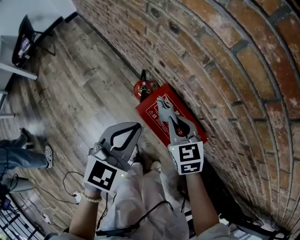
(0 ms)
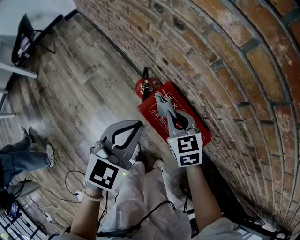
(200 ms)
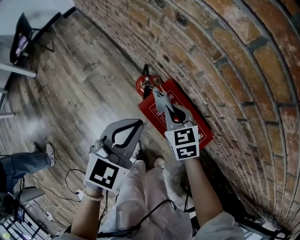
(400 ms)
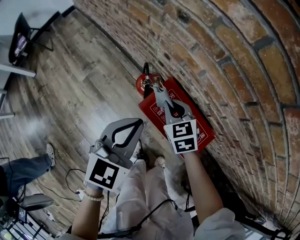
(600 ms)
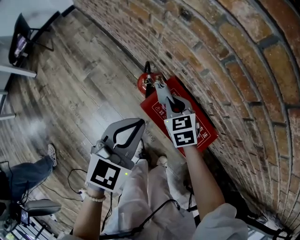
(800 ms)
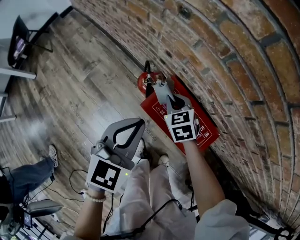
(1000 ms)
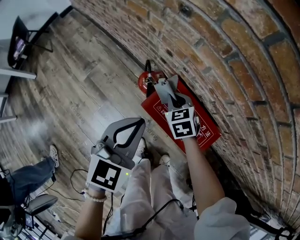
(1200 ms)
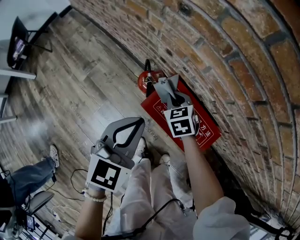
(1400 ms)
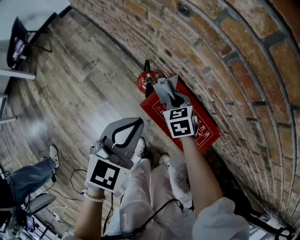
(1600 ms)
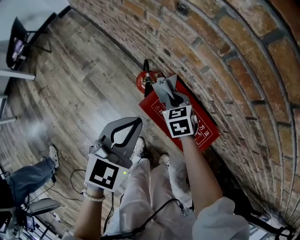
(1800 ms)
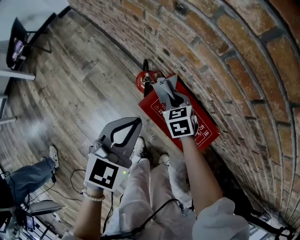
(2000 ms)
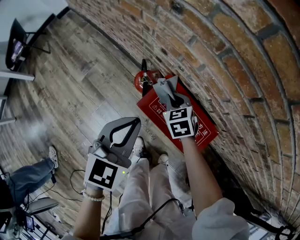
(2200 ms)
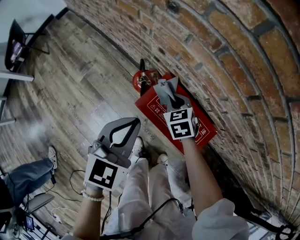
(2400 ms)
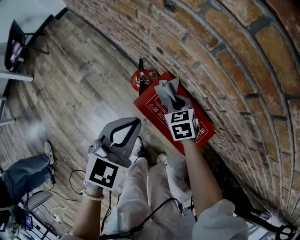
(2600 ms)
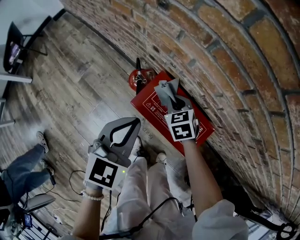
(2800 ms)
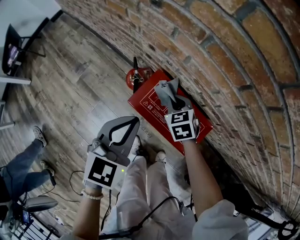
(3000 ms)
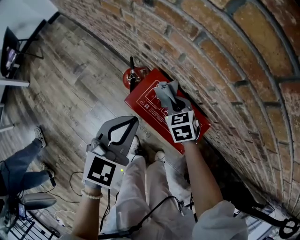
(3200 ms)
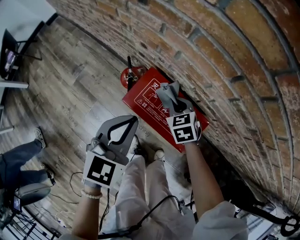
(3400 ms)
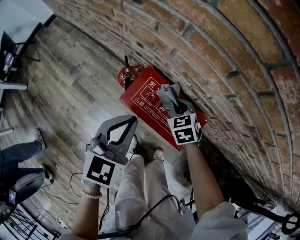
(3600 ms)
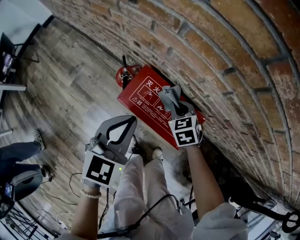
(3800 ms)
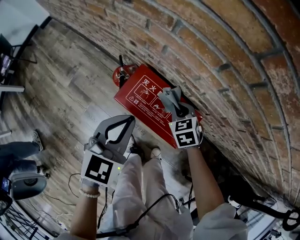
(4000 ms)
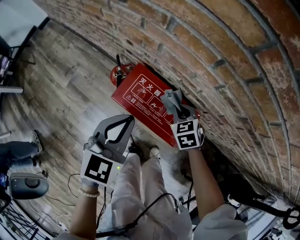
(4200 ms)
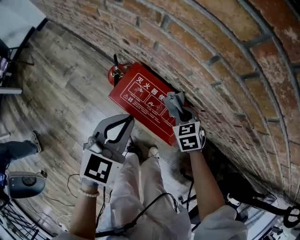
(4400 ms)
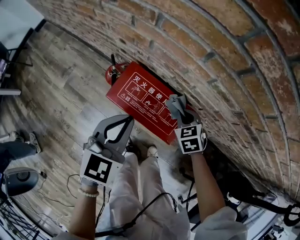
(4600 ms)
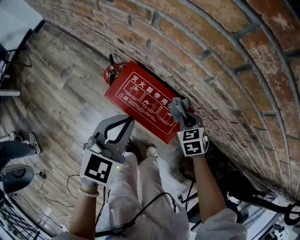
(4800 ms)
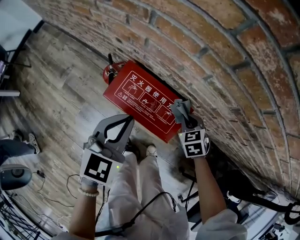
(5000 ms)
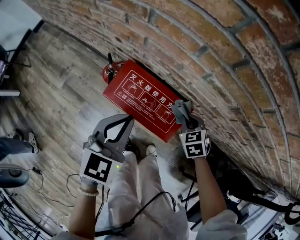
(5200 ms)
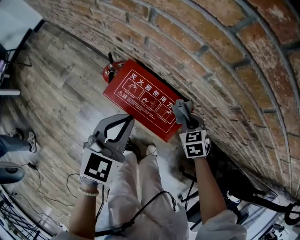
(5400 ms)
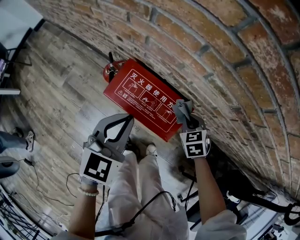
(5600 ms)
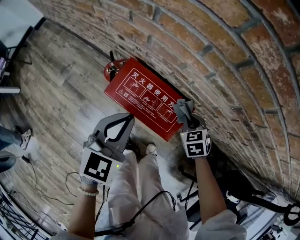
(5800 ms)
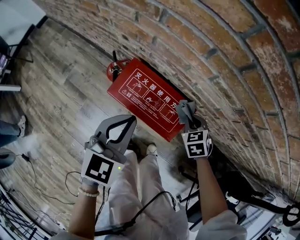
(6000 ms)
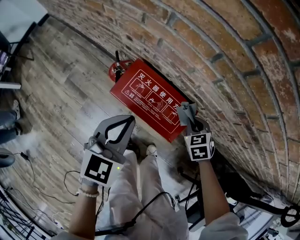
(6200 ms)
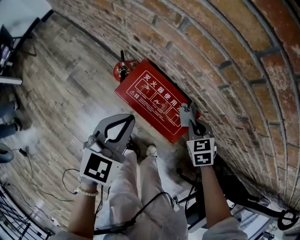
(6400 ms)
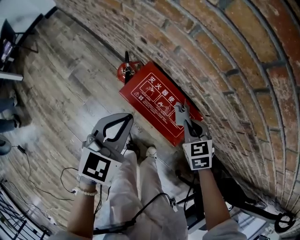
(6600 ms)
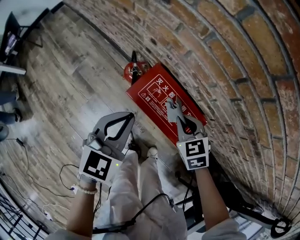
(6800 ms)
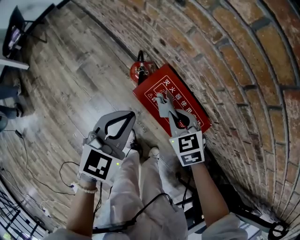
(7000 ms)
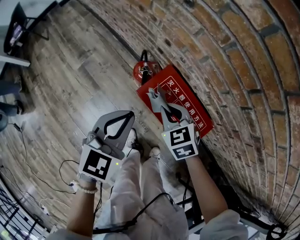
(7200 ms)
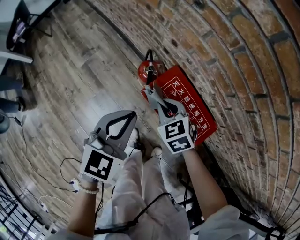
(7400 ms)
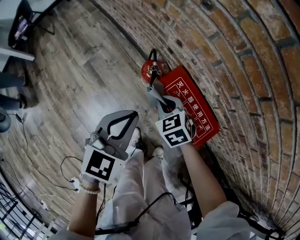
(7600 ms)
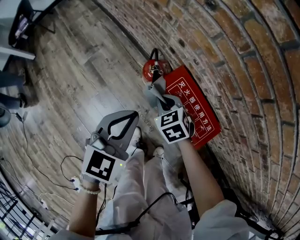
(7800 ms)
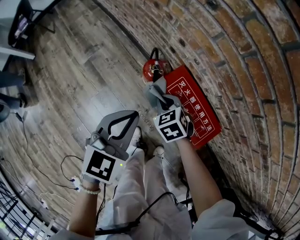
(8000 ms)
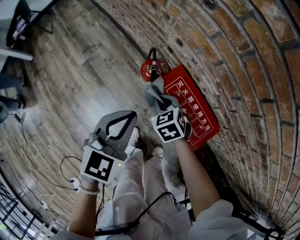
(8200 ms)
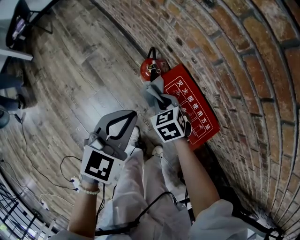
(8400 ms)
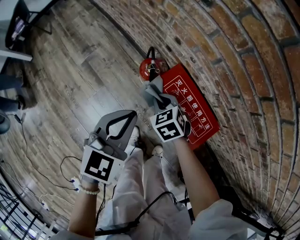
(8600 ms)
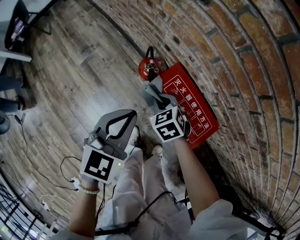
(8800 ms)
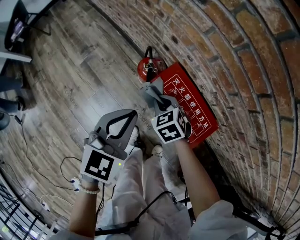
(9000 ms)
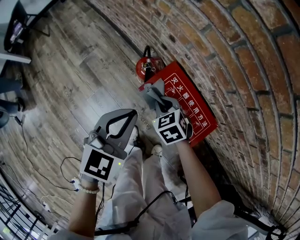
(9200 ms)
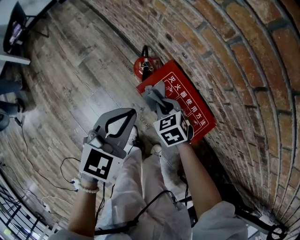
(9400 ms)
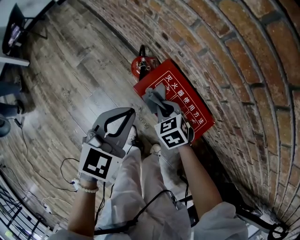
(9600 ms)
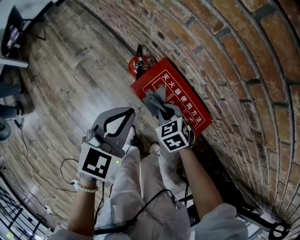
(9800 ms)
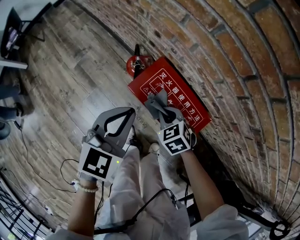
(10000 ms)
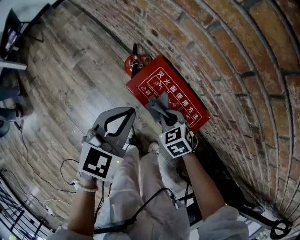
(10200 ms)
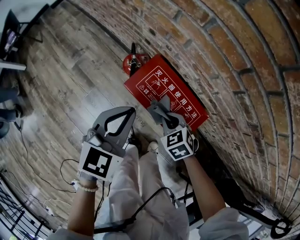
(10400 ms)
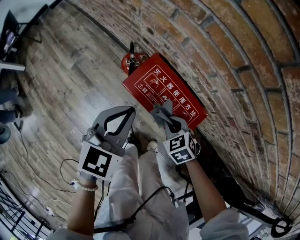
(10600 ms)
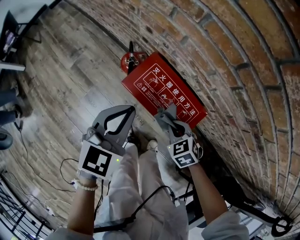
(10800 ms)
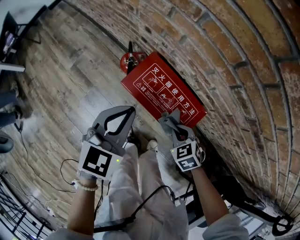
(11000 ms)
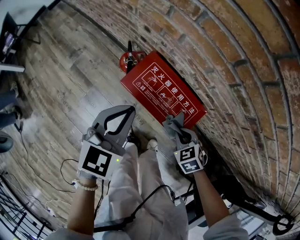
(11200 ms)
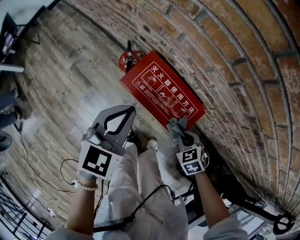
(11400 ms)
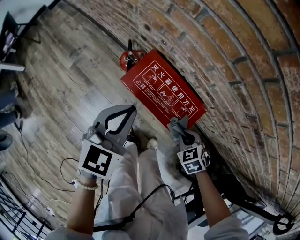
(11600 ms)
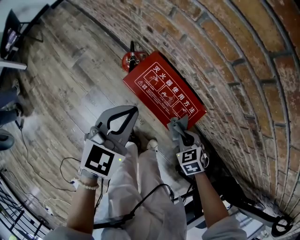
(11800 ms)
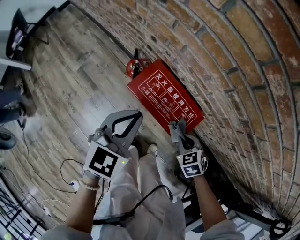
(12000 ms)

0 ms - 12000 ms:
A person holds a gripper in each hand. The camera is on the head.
0 ms - 1600 ms: The left gripper moves downward, approximately 5 cm; the right gripper travels downward and forward by some 15 cm.
1600 ms - 3000 ms: The right gripper moves to the right, roughly 5 cm.
3000 ms - 4400 ms: The right gripper shifts some 15 cm to the right and backward, while the left gripper goes approximately 5 cm to the right.
4400 ms - 6000 ms: The right gripper shifts roughly 5 cm to the right.
6000 ms - 7600 ms: The left gripper shifts by approximately 15 cm, while the right gripper shifts by approximately 30 cm, and turns by roughly 30 degrees.
7600 ms - 9000 ms: There are only small adjustments of the grippers.
9000 ms - 10400 ms: The right gripper heads to the right and backward, covering roughly 15 cm. Meanwhile the left gripper goes some 5 cm to the right.
10400 ms - 12000 ms: The right gripper heads to the right and backward, covering roughly 10 cm.

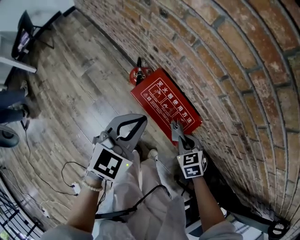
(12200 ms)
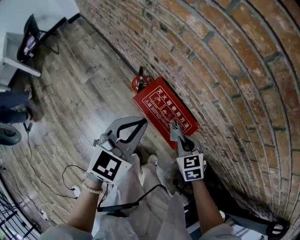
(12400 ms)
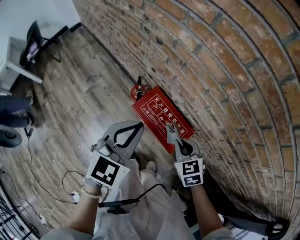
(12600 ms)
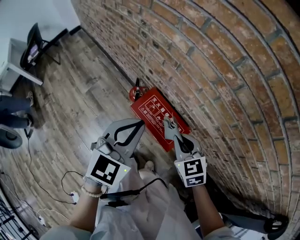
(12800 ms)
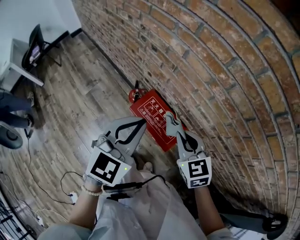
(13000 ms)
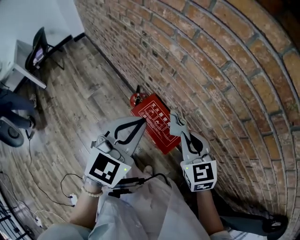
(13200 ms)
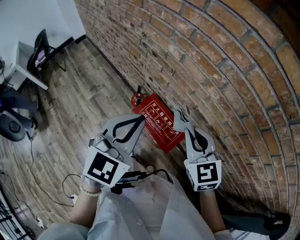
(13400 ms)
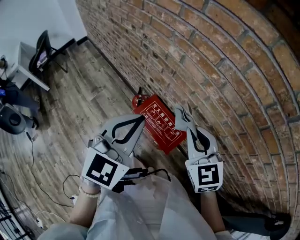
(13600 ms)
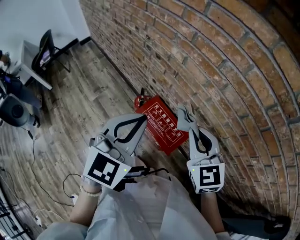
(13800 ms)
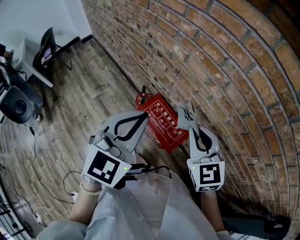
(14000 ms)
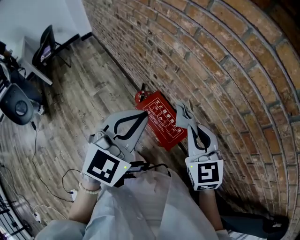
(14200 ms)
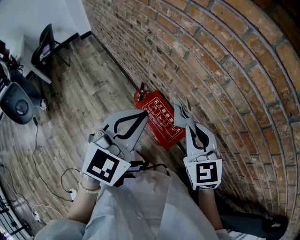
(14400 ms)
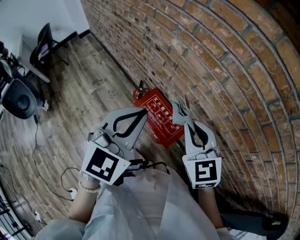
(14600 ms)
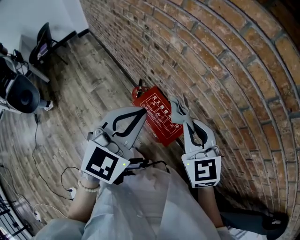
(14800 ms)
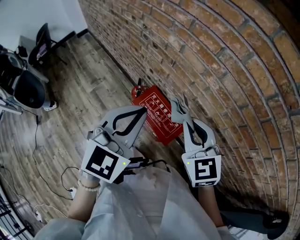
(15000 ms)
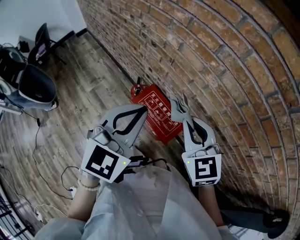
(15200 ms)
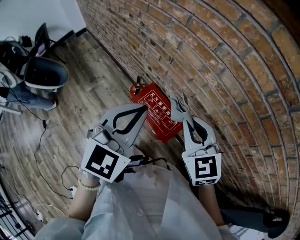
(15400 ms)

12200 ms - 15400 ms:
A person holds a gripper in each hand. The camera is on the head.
12200 ms - 13800 ms: The left gripper moves upward, roughly 25 cm. Meanwhile the right gripper heads upward, covering approximately 35 cm, and angles its fingers upward, by about 40 degrees.
13800 ms - 15400 ms: The grippers move only a little.

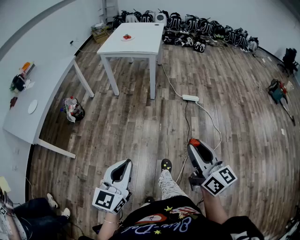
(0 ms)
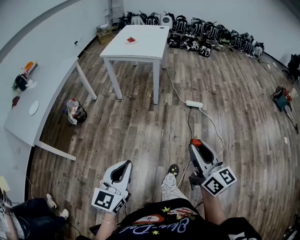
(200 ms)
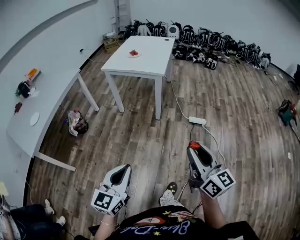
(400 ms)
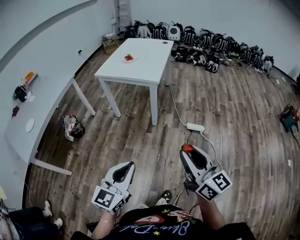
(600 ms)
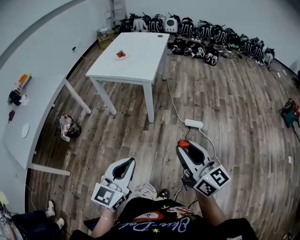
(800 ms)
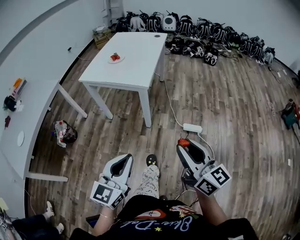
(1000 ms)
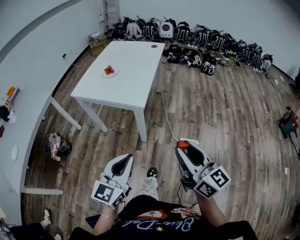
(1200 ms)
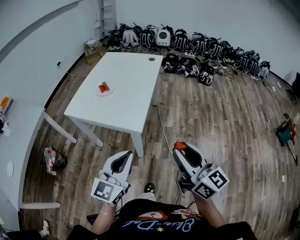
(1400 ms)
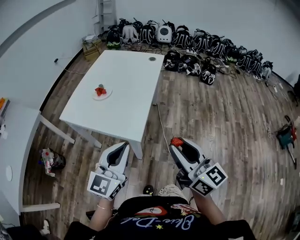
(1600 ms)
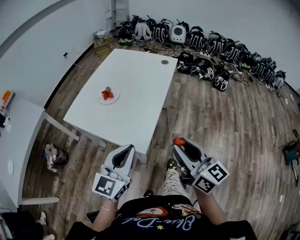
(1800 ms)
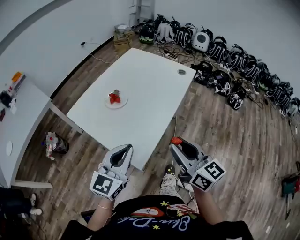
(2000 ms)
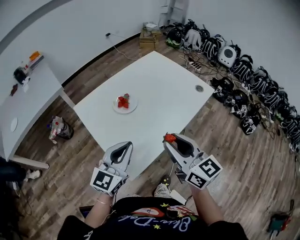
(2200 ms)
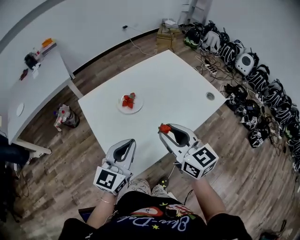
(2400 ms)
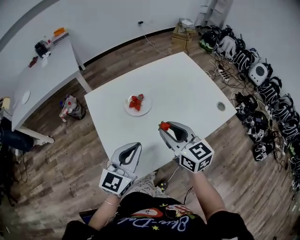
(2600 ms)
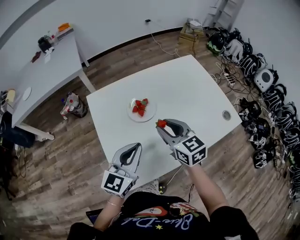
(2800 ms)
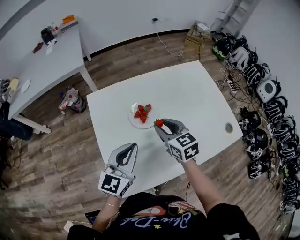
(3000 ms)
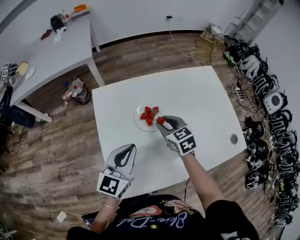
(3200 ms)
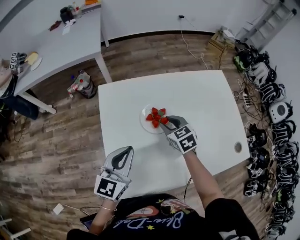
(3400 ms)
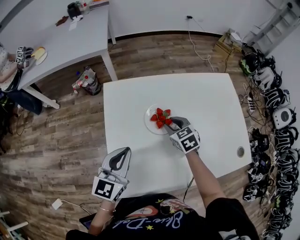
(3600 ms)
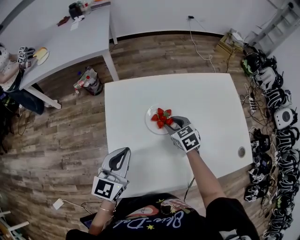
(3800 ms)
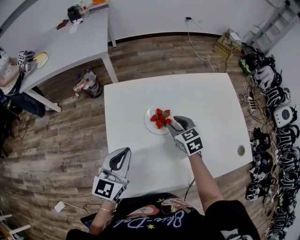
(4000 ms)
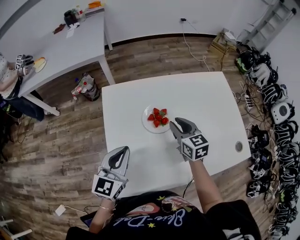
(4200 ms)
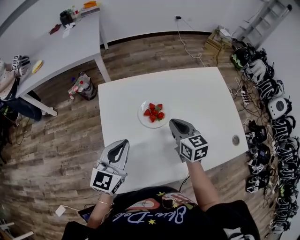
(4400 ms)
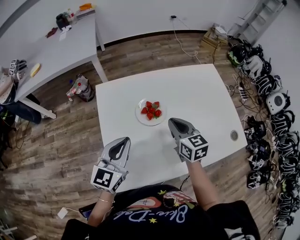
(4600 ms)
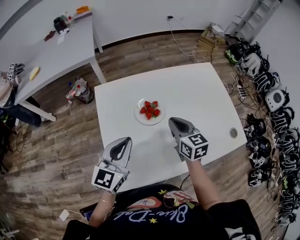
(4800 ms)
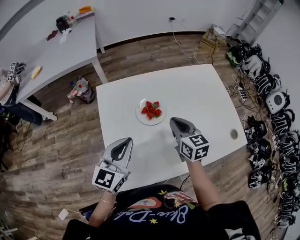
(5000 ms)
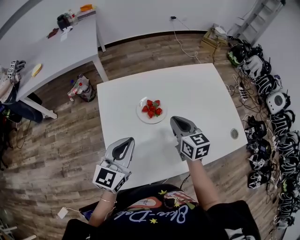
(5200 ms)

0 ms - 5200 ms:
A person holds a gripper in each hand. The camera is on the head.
0 ms - 1800 ms: Both grippers are carried forward, about 90 cm.
1800 ms - 3400 ms: The left gripper shifts by about 30 cm, and swivels roughly 60 degrees; the right gripper moves roughly 60 cm, and tilts its fingers approximately 40 degrees downward.
3400 ms - 5200 ms: The right gripper travels upward and backward by roughly 10 cm, changes its angle by roughly 30 degrees, and closes.

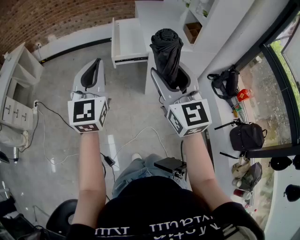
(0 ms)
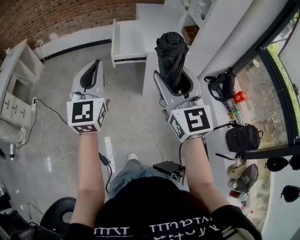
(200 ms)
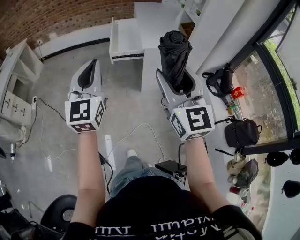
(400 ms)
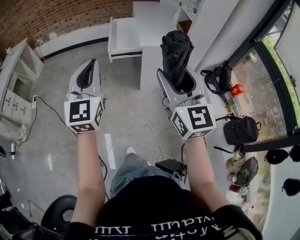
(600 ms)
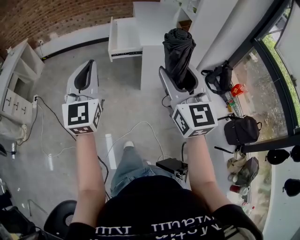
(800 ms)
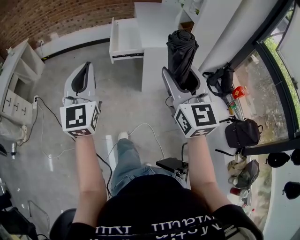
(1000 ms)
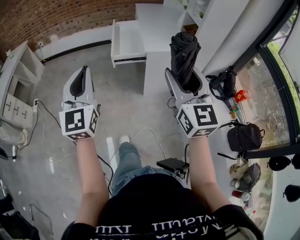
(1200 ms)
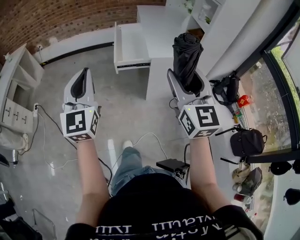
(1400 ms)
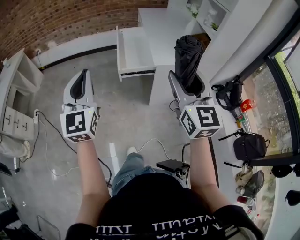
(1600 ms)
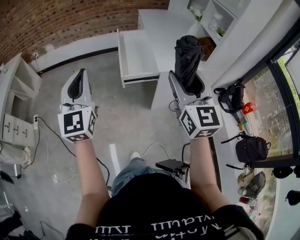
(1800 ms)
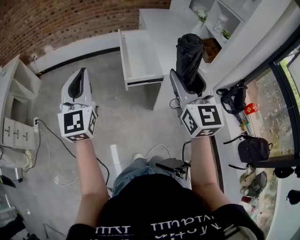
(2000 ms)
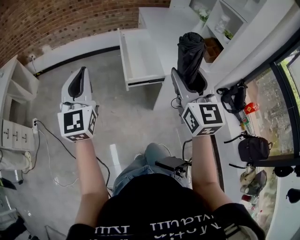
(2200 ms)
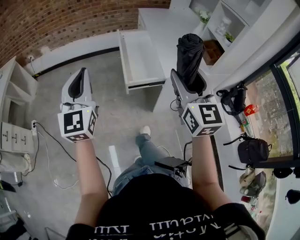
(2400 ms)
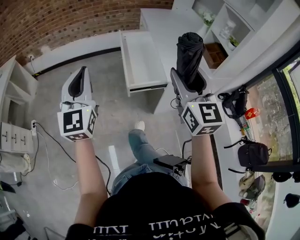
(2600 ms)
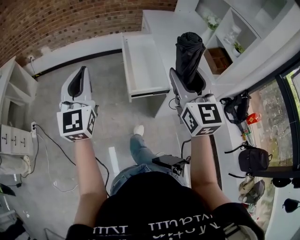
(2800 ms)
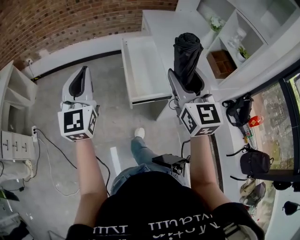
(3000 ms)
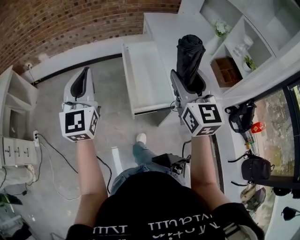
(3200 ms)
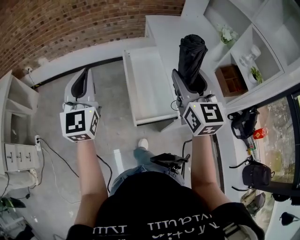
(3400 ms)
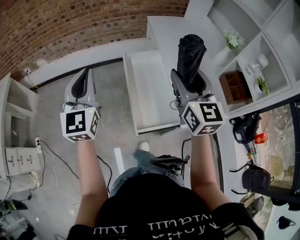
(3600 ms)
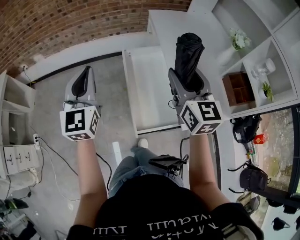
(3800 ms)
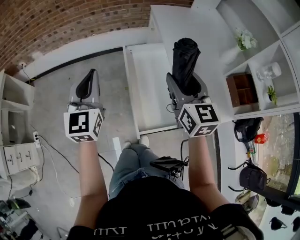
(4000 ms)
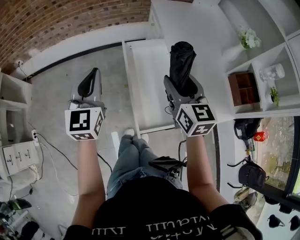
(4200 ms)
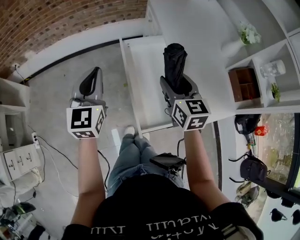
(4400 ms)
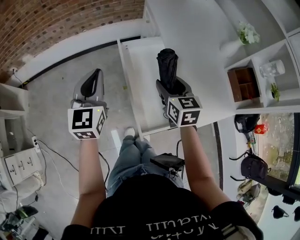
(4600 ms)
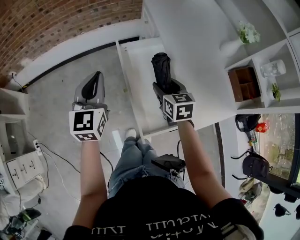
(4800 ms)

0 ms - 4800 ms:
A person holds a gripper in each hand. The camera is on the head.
0 ms - 1600 ms: The right gripper moves forward, about 10 cm. Meanwhile the left gripper goes roughly 10 cm to the left and forward.
1600 ms - 3200 ms: The two grippers go some 35 cm forward.
3200 ms - 4800 ms: The right gripper shifts roughly 35 cm downward and forward, and tips its fingers downward by about 40 degrees. Meanwhile the left gripper goes roughly 30 cm forward and downward, and swivels some 20 degrees.
